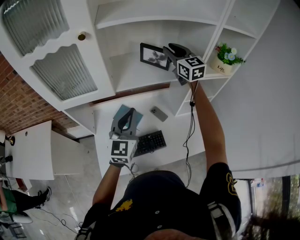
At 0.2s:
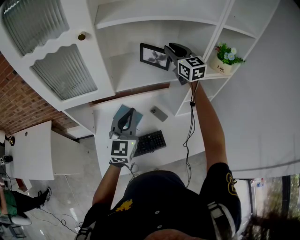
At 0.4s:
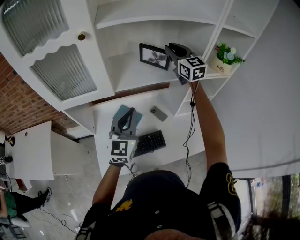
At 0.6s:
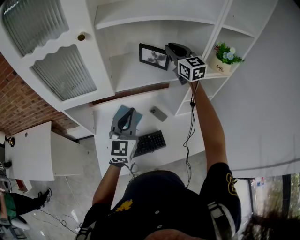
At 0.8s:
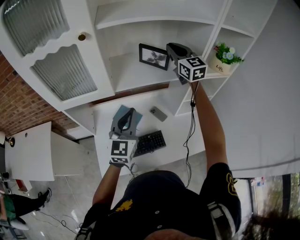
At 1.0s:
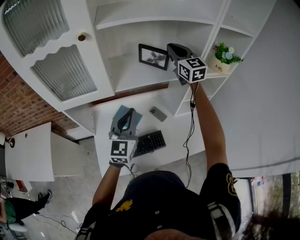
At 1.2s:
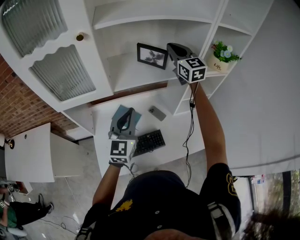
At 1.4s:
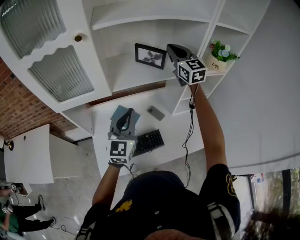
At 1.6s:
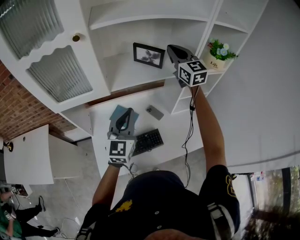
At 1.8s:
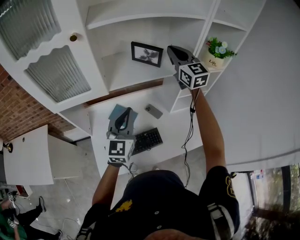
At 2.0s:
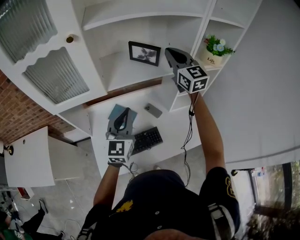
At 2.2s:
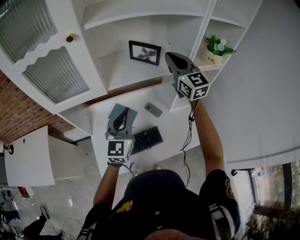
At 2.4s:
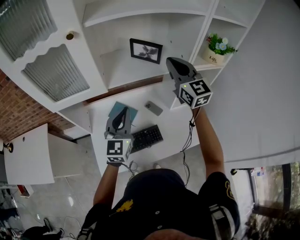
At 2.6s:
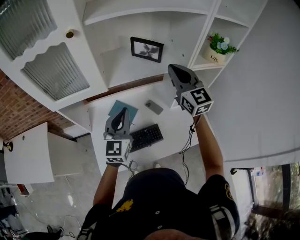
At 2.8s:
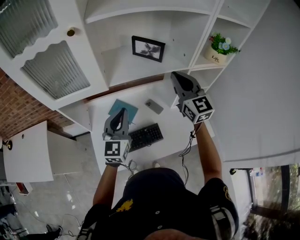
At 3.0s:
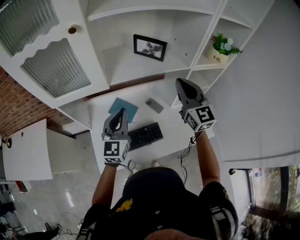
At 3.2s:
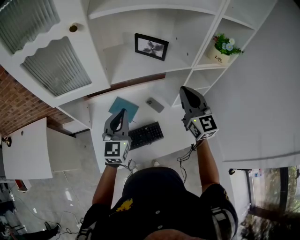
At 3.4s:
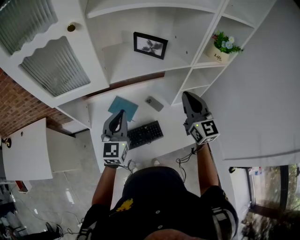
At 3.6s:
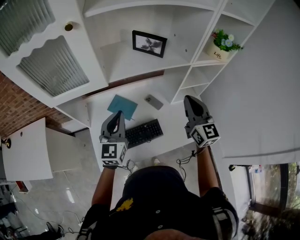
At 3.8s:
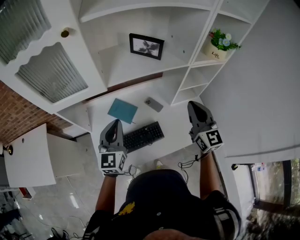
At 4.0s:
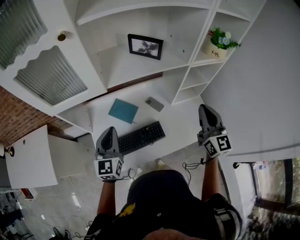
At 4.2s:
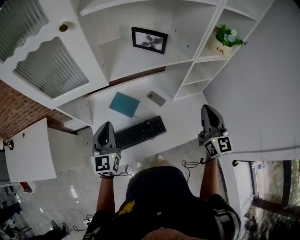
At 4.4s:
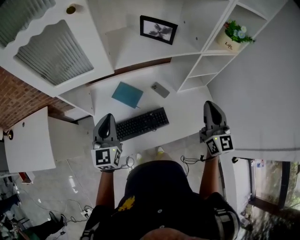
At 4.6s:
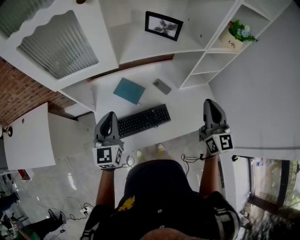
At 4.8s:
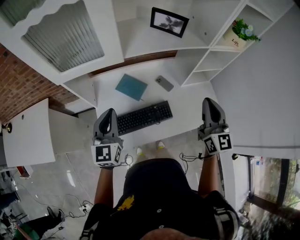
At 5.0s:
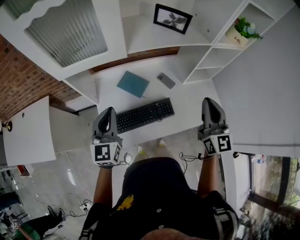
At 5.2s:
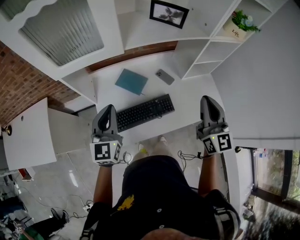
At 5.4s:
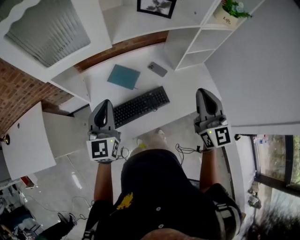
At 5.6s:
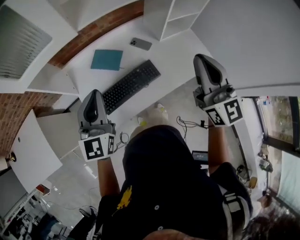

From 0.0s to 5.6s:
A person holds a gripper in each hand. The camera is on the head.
From 0.0s to 1.4s: The right gripper closes.
From 1.4s to 2.8s: The right gripper goes approximately 15 cm backward and downward.
From 2.8s to 4.2s: The right gripper goes some 20 cm backward, to the right and downward, while the left gripper is displaced to the left by roughly 10 cm.
From 4.2s to 5.6s: The left gripper is displaced backward by roughly 5 cm. The right gripper moves backward and to the left, about 10 cm.

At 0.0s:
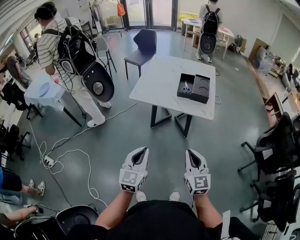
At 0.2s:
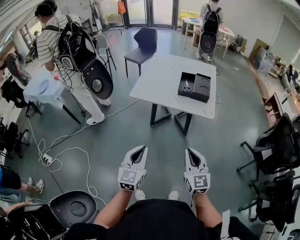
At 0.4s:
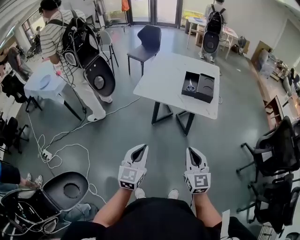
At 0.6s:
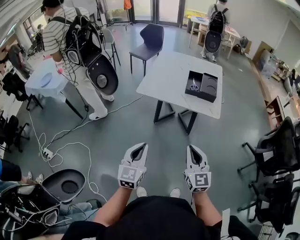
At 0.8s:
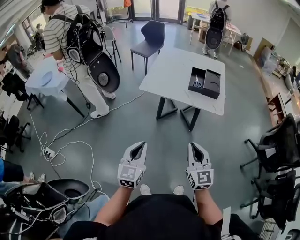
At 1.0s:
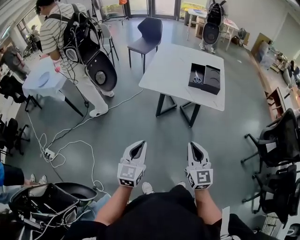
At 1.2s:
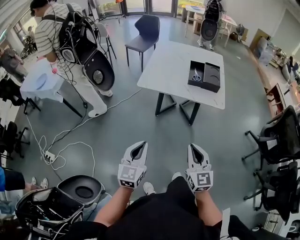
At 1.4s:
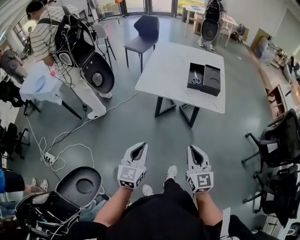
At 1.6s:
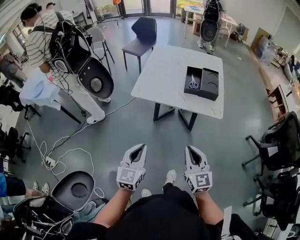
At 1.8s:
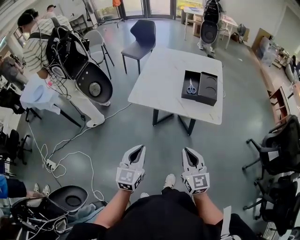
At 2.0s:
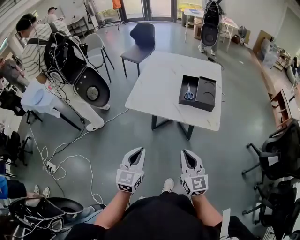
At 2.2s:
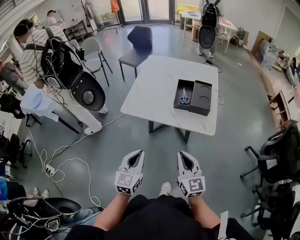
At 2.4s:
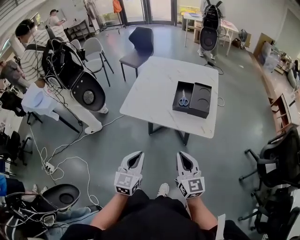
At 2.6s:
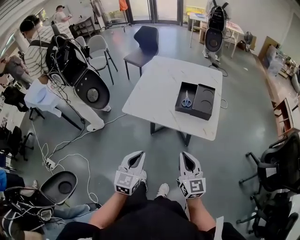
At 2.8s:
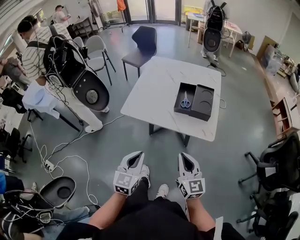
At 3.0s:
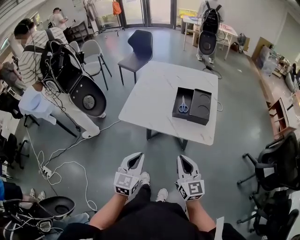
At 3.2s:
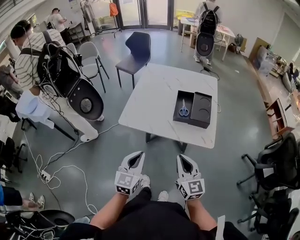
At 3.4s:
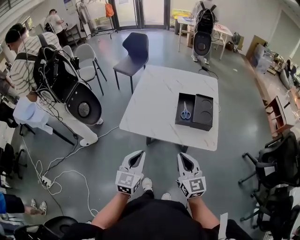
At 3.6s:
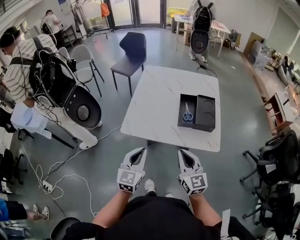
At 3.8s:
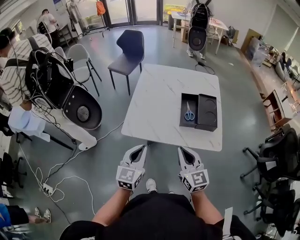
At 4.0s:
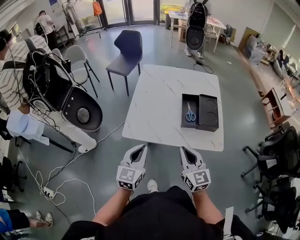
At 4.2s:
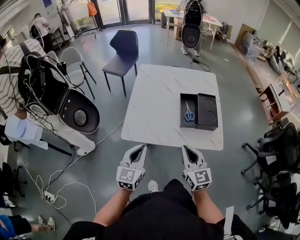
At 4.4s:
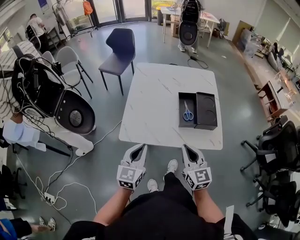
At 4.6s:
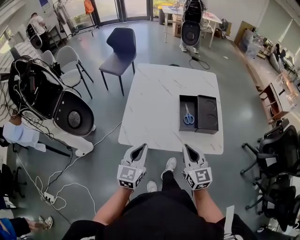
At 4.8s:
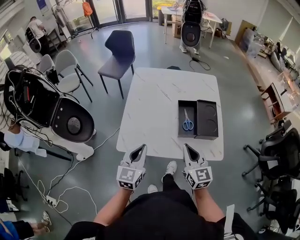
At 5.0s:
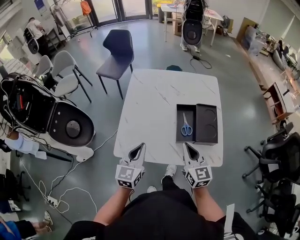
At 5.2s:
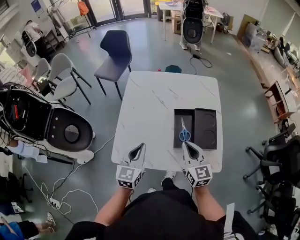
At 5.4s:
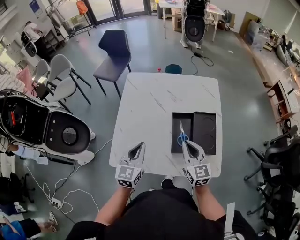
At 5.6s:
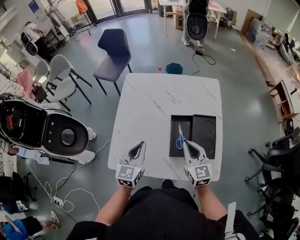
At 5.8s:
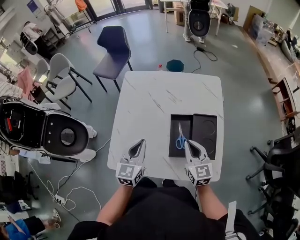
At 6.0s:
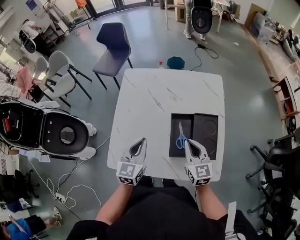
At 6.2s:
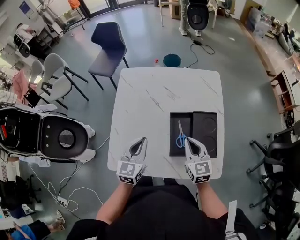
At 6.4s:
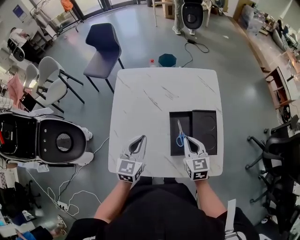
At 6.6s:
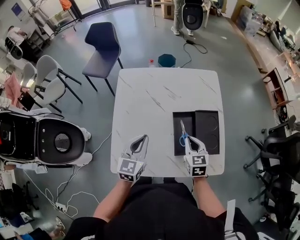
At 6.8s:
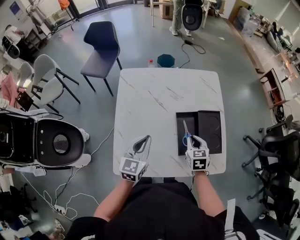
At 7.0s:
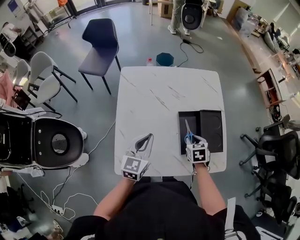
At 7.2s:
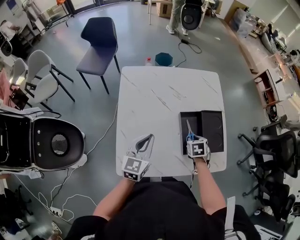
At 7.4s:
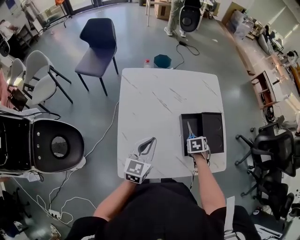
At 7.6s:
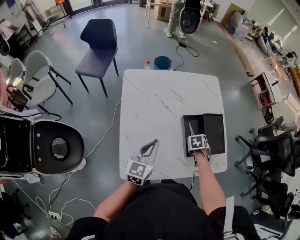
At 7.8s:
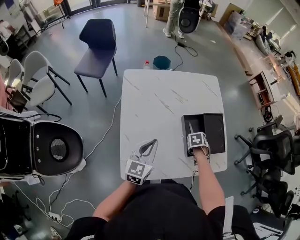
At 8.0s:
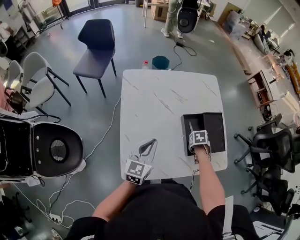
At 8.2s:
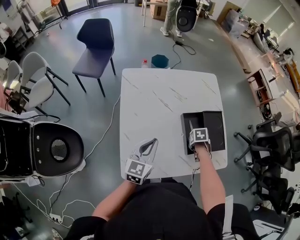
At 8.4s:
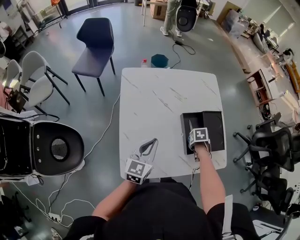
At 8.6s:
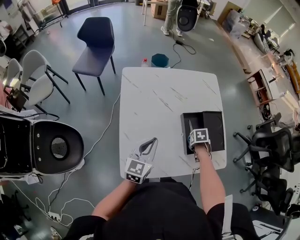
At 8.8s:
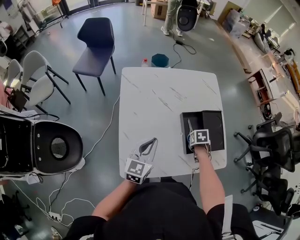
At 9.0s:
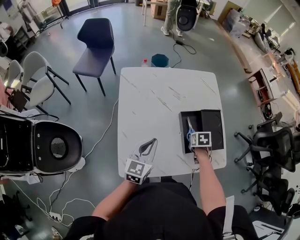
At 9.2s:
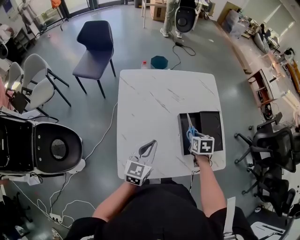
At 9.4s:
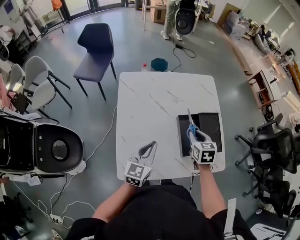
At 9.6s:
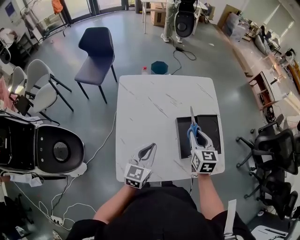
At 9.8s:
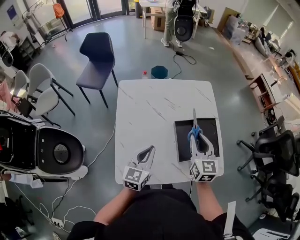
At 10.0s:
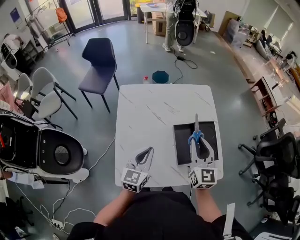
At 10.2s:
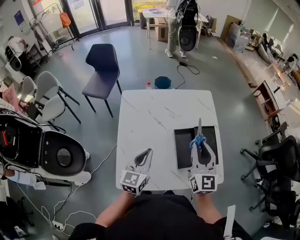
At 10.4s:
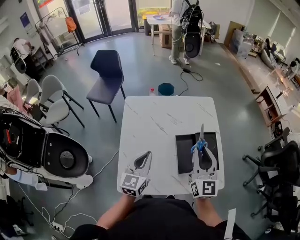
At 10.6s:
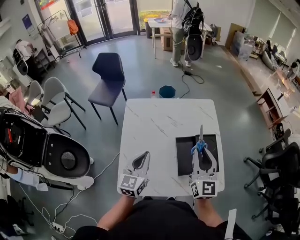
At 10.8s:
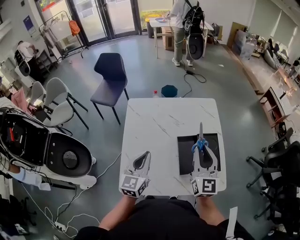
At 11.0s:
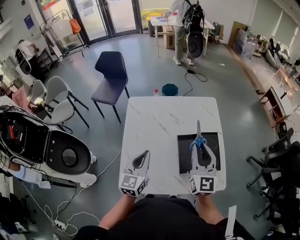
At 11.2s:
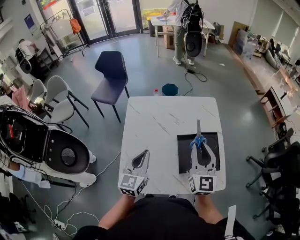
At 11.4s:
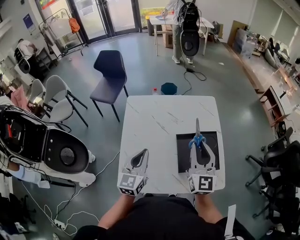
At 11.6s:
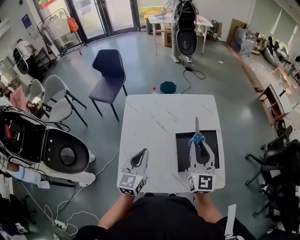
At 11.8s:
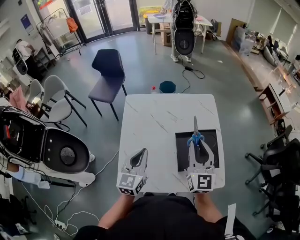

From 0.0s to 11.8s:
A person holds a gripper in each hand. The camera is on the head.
From 0.0s to 1.4s: The grippers both shift to the left by roughly 10 cm.
From 1.4s to 3.0s: Both grippers travel together forward and to the right, about 20 cm.
From 3.0s to 4.4s: Both grippers move forward and to the left, about 20 cm.
From 4.4s to 6.0s: Both grippers move forward, about 25 cm.
From 6.0s to 7.4s: The right gripper is displaced downward by some 15 cm, and tips its fingers downward by roughly 50 degrees. The left gripper ends up approximately 5 cm from where it was.
From 7.4s to 8.8s: The grippers move only a little.
From 8.8s to 10.4s: The left gripper travels upward by some 5 cm. Meanwhile the right gripper shifts roughly 35 cm upward, and tips its fingers upward by some 80 degrees.
From 10.4s to 11.8s: The grippers move only a little.

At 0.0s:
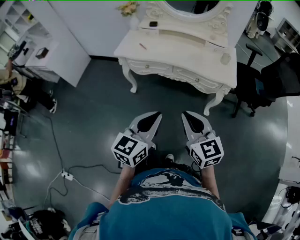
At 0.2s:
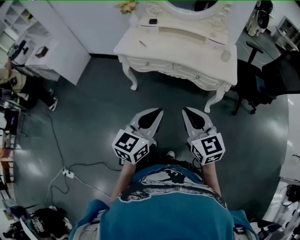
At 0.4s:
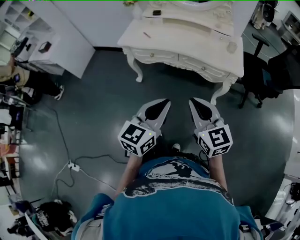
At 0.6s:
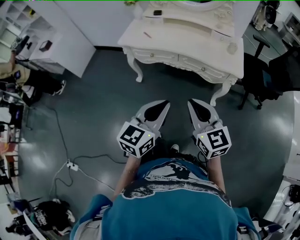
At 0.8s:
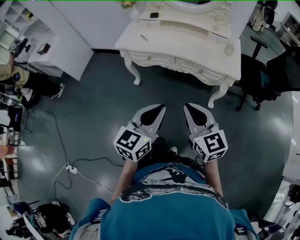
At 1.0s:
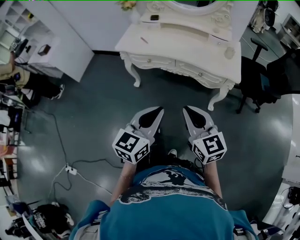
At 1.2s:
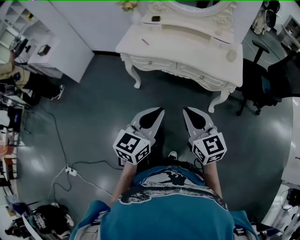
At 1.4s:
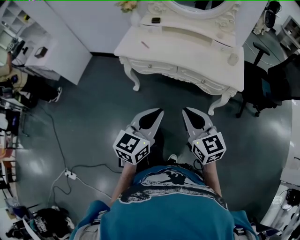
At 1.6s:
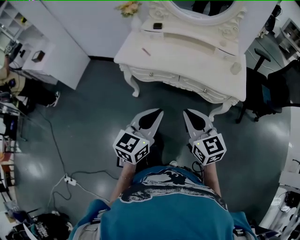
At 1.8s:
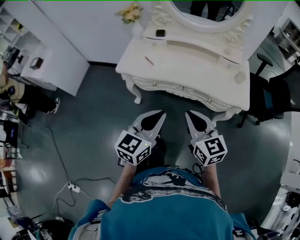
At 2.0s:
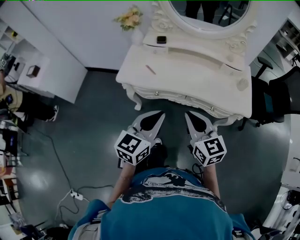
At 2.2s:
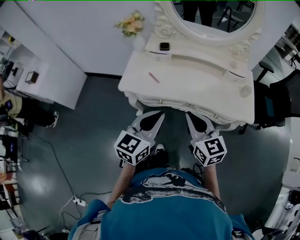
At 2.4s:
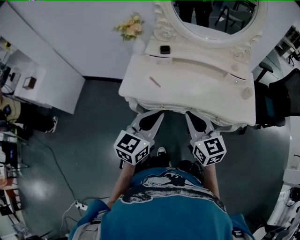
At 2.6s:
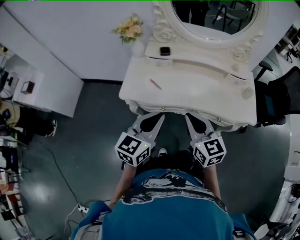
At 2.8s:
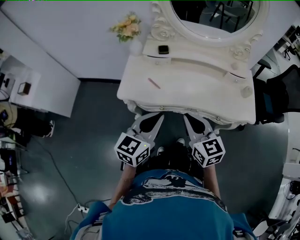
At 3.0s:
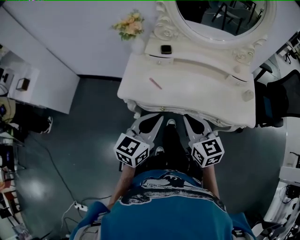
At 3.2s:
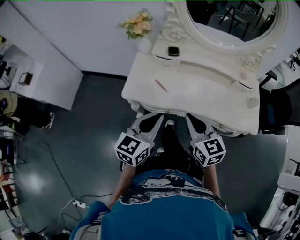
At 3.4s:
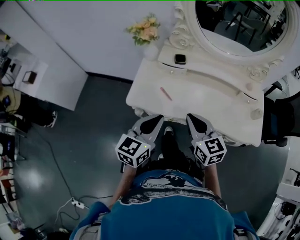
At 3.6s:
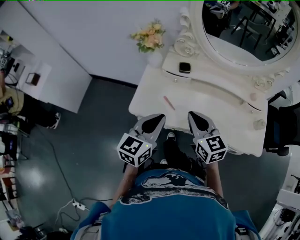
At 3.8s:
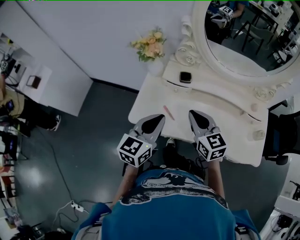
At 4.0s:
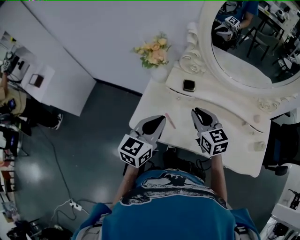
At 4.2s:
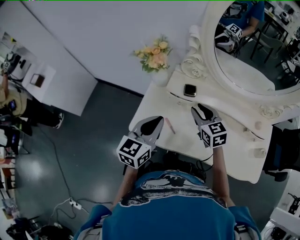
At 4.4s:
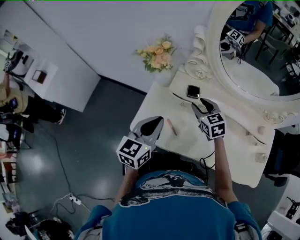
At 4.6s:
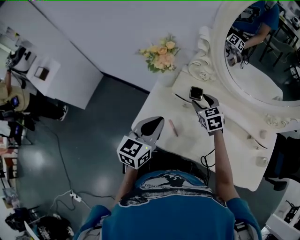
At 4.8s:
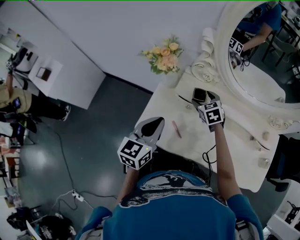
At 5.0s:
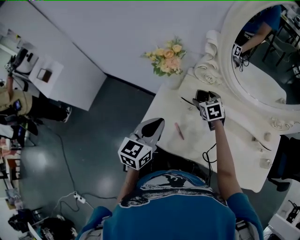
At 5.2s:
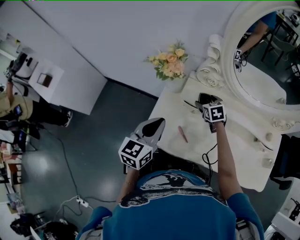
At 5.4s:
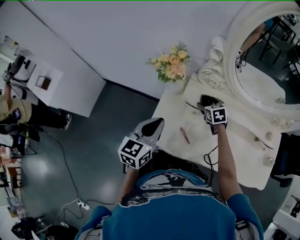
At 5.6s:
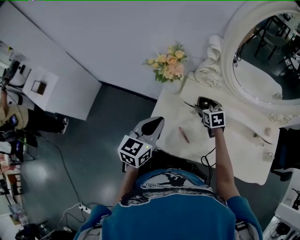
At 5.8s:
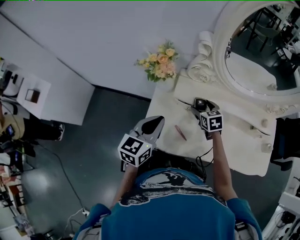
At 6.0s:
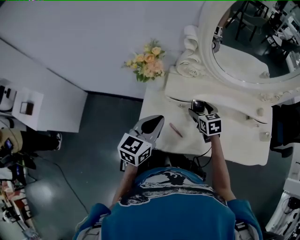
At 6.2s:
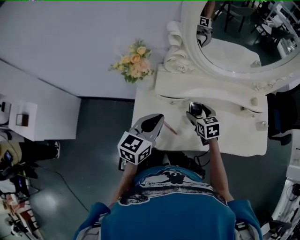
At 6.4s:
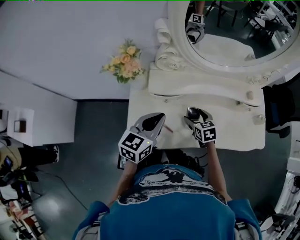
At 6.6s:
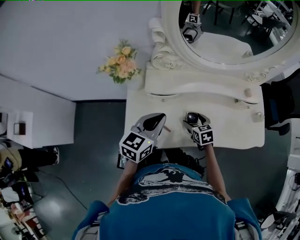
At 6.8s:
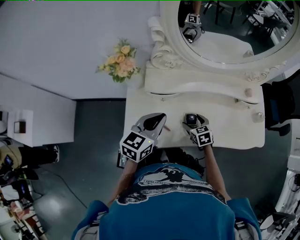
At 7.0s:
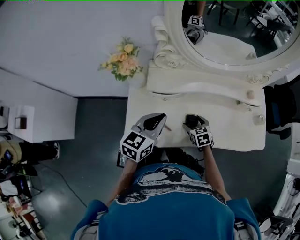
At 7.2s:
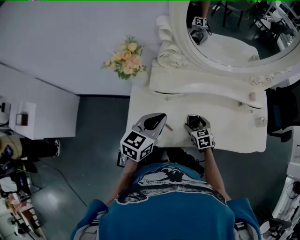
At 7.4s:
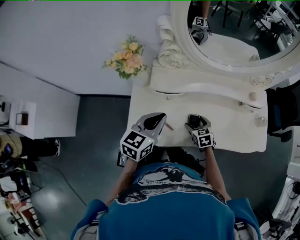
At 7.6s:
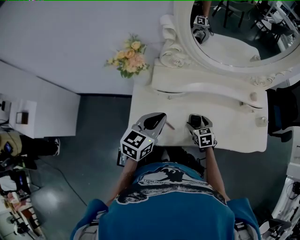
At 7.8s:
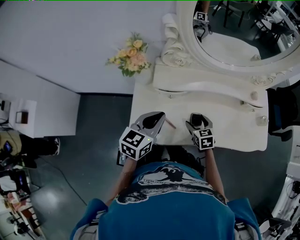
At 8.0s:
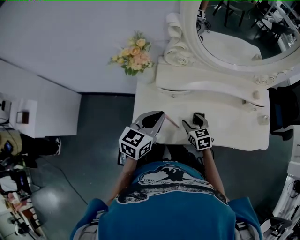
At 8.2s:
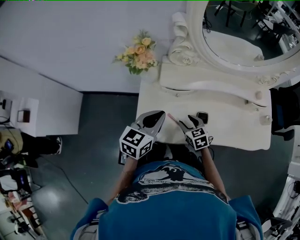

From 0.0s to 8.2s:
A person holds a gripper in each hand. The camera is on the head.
From 0.0s to 1.6s: The grippers both shift forward by approximately 15 cm.
From 1.6s to 3.2s: Both grippers travel together forward and to the left, about 30 cm.
From 3.2s to 5.0s: The left gripper travels forward by some 25 cm; the right gripper heads forward, covering about 40 cm, swivels approximately 30 degrees, and opens.
From 5.0s to 6.6s: The right gripper heads backward and to the right, covering roughly 20 cm, and changes its angle by roughly 30 degrees. The left gripper shifts about 10 cm to the right, and turns by about 30 degrees.
From 6.6s to 8.2s: The left gripper moves to the left, approximately 5 cm. Meanwhile the right gripper is displaced to the left by roughly 10 cm, and closes.
